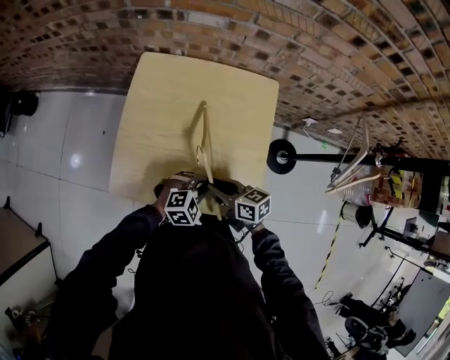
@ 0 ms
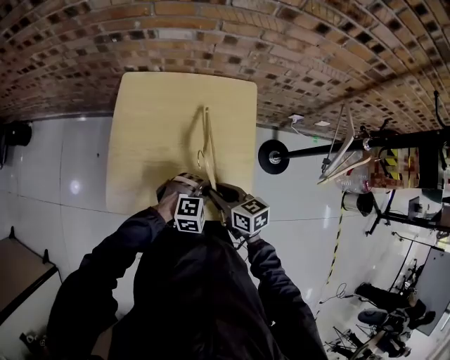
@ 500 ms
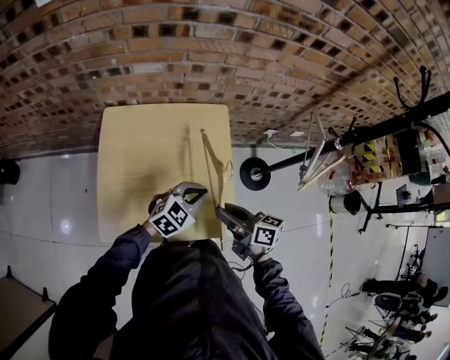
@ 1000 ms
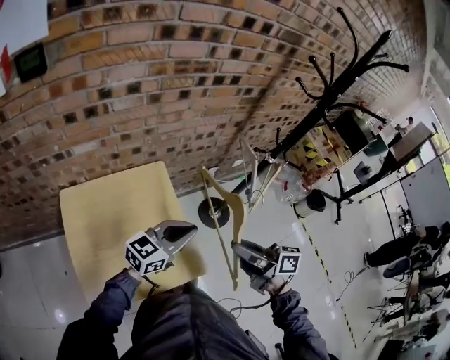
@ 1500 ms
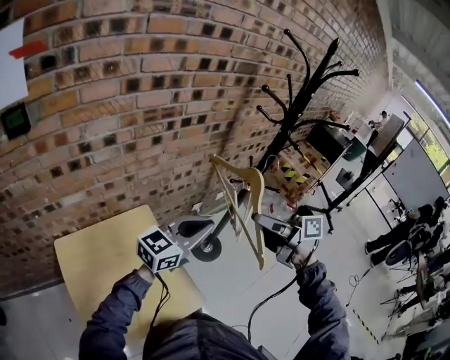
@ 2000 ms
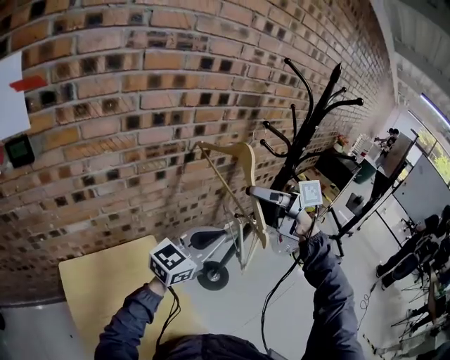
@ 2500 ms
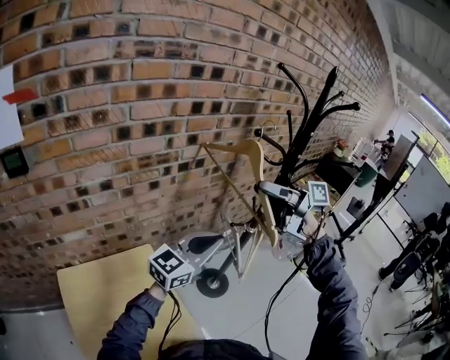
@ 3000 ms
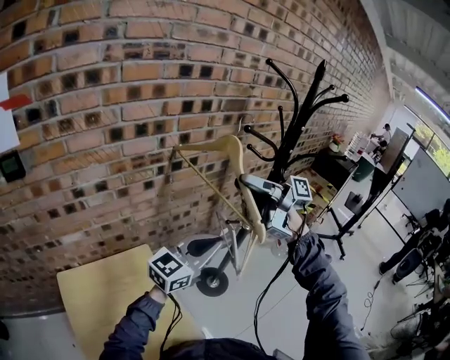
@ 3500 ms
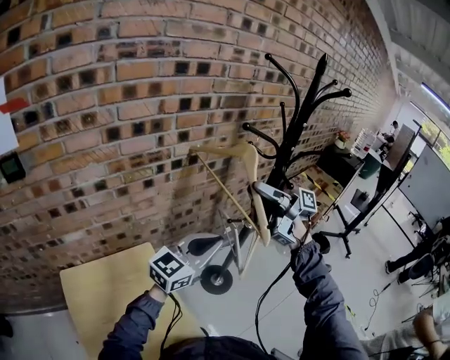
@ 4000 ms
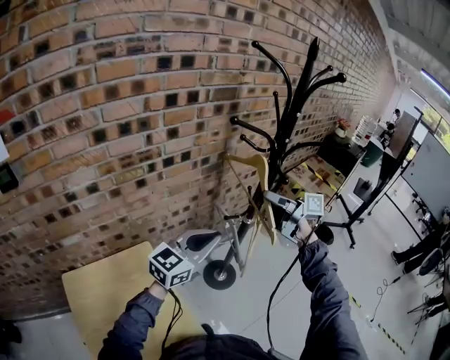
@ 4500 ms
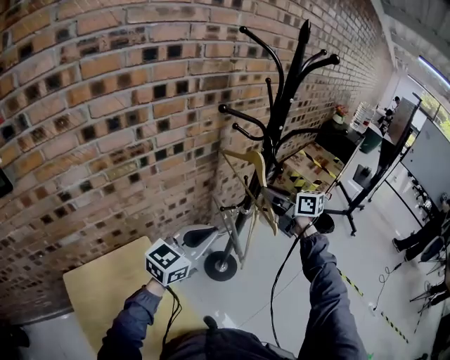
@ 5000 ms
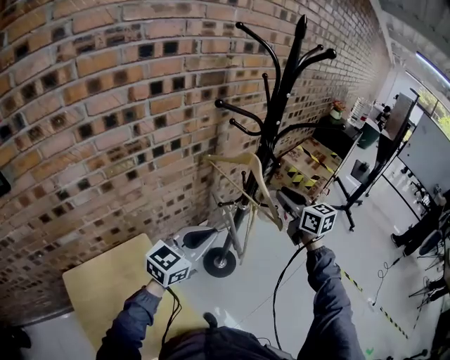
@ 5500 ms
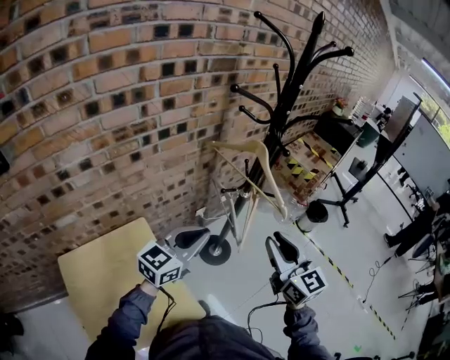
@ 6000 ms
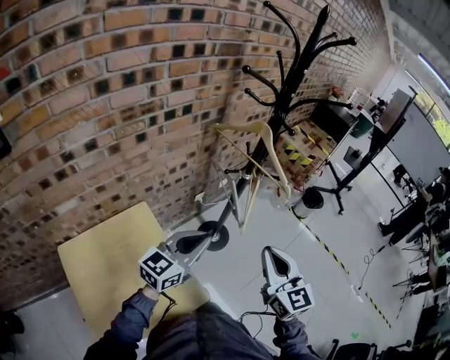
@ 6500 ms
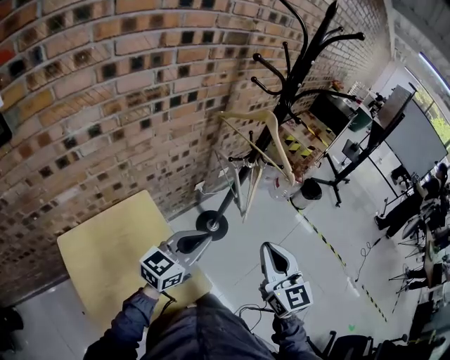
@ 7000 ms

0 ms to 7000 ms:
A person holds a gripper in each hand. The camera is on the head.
0 ms to 2000 ms: The two grippers go some 40 cm upward. The right gripper rotates roughly 50 degrees. The left gripper angles its fingers upward, by roughly 50 degrees.
2000 ms to 3500 ms: The right gripper moves approximately 20 cm, and rotates about 30 degrees; the left gripper moves approximately 10 cm.
3500 ms to 5000 ms: The left gripper ends up about 5 cm from where it was. The right gripper shifts roughly 25 cm to the right and downward, and swivels about 50 degrees.
5000 ms to 7000 ms: The right gripper heads backward, covering approximately 35 cm, rotates approximately 50 degrees, and closes its fingers; the left gripper goes some 20 cm backward and downward.

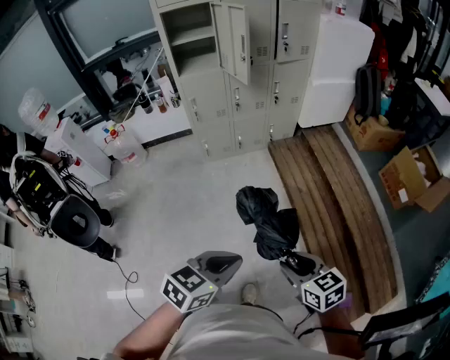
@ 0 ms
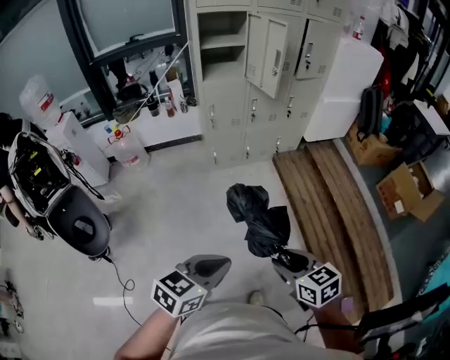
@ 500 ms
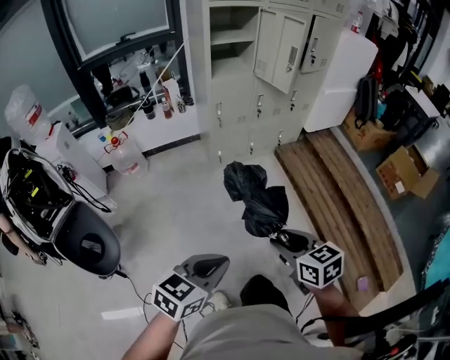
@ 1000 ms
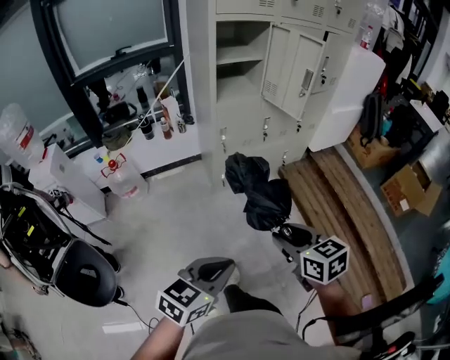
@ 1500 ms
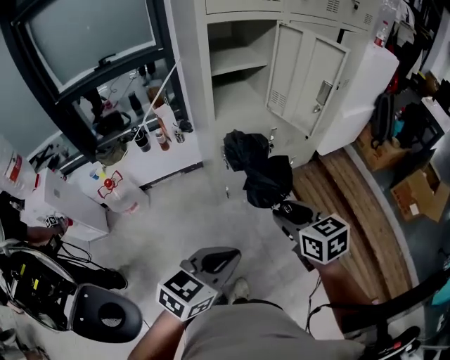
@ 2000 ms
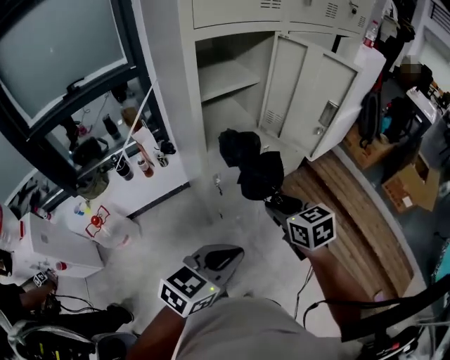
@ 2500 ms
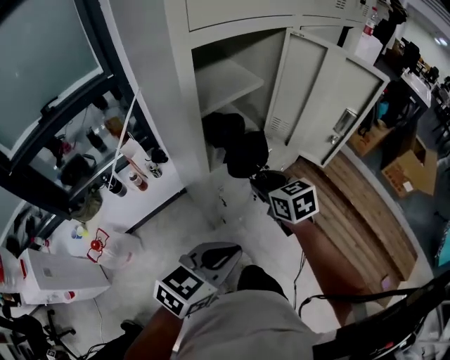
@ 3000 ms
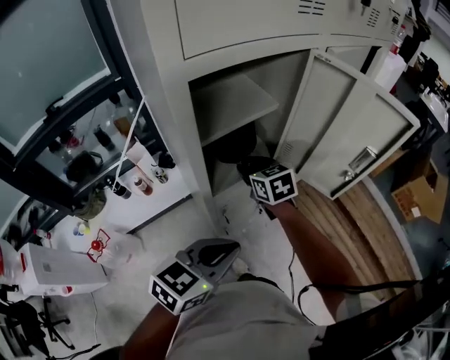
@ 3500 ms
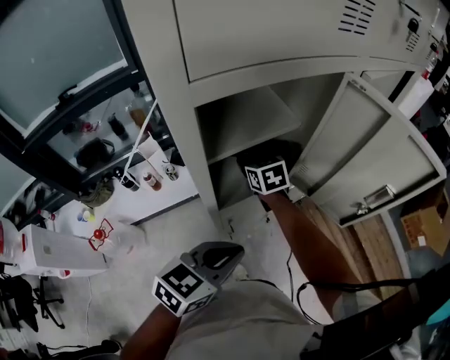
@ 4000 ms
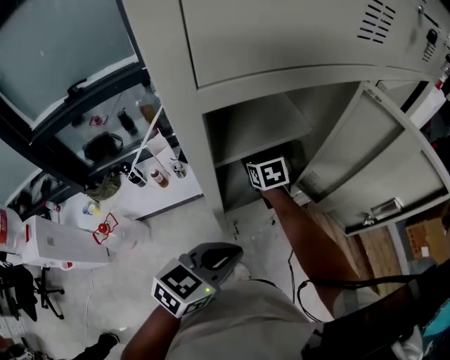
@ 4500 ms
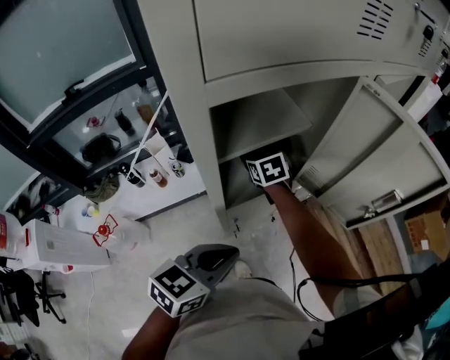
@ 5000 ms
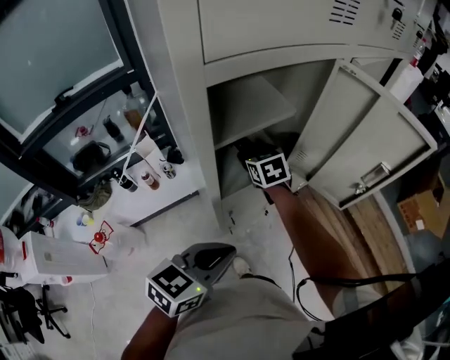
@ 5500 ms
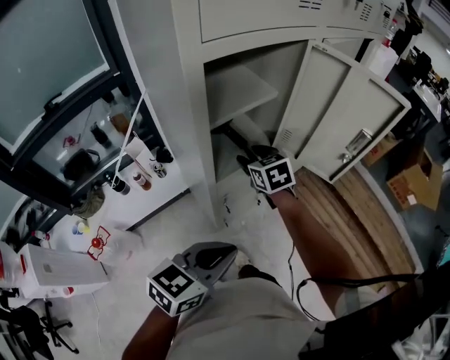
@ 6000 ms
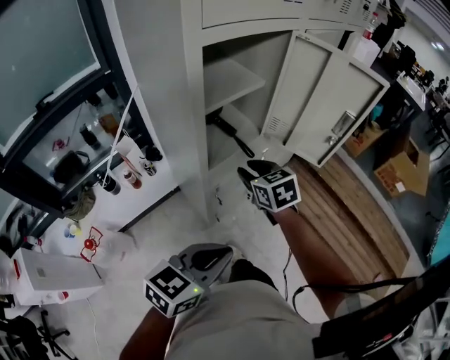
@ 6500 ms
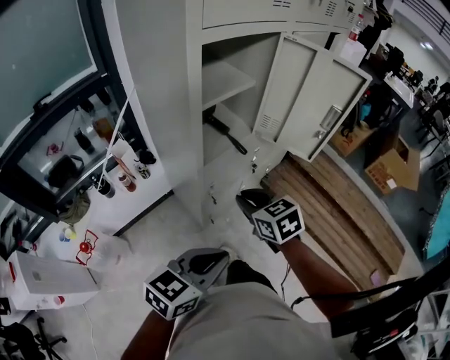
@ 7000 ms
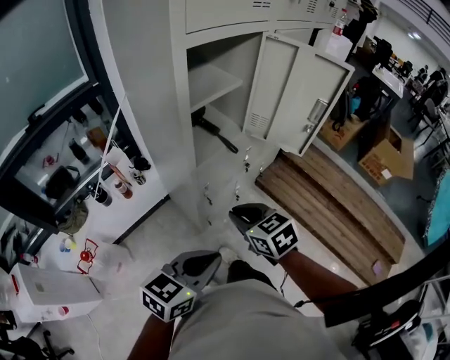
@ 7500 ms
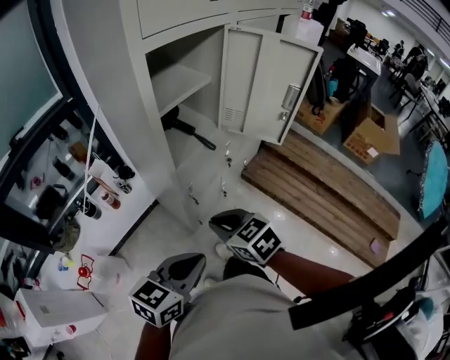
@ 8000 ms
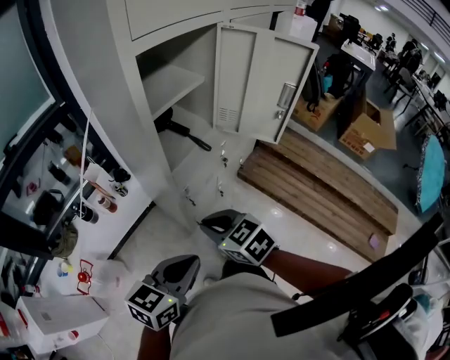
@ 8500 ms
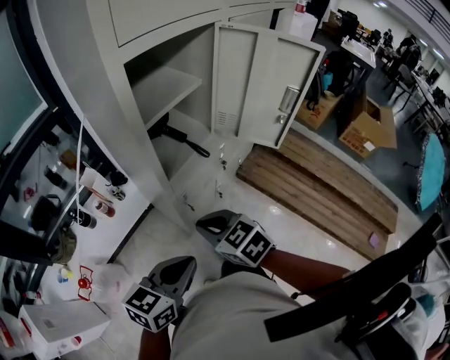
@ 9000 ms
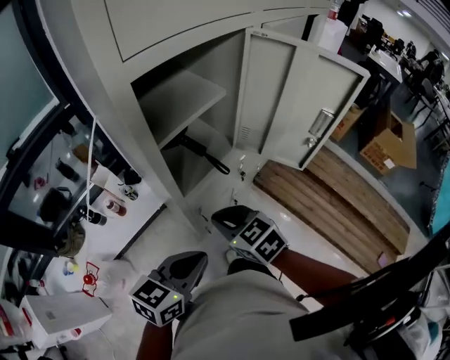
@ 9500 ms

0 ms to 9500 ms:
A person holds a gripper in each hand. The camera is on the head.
0 ms to 2000 ms: The pair of grippers is taken to the left and forward, roughly 50 cm.
2000 ms to 4000 ms: The right gripper moves forward and to the left, approximately 60 cm; the left gripper moves forward, approximately 35 cm.
4000 ms to 5500 ms: The grippers move only a little.
5500 ms to 7500 ms: The right gripper heads backward, covering approximately 35 cm, and closes up, while the left gripper is displaced backward by roughly 15 cm.
7500 ms to 9500 ms: The two grippers go about 10 cm forward.

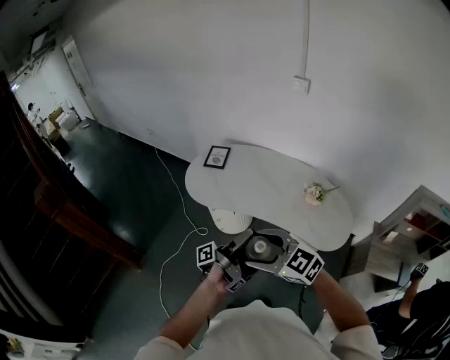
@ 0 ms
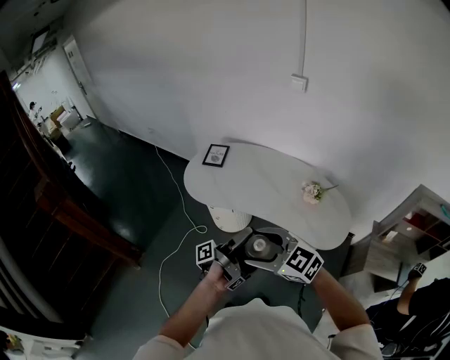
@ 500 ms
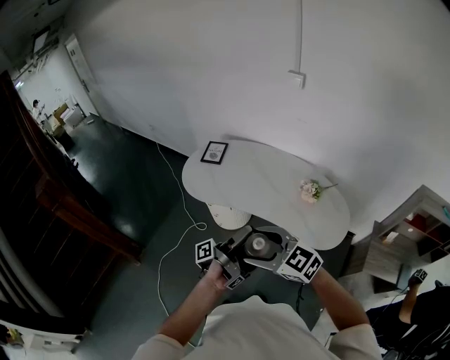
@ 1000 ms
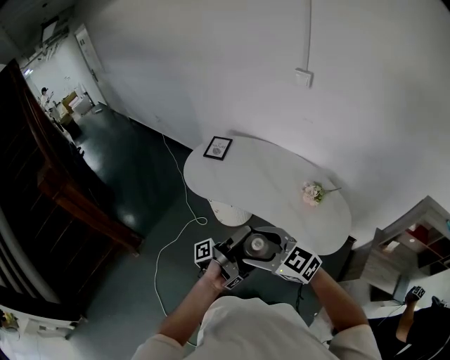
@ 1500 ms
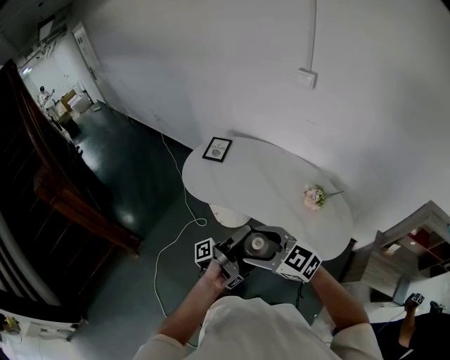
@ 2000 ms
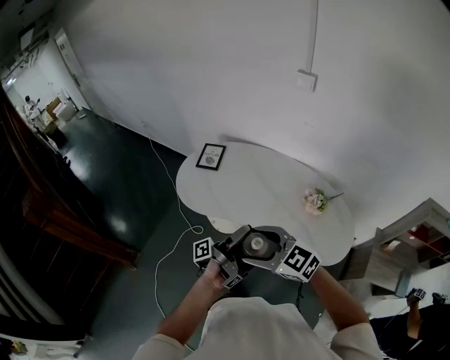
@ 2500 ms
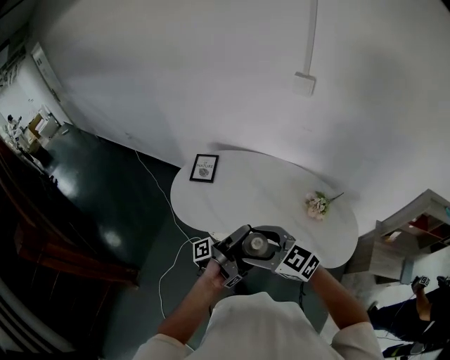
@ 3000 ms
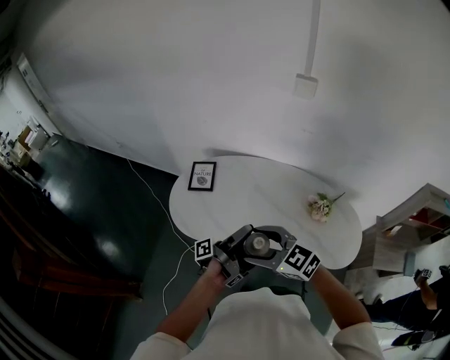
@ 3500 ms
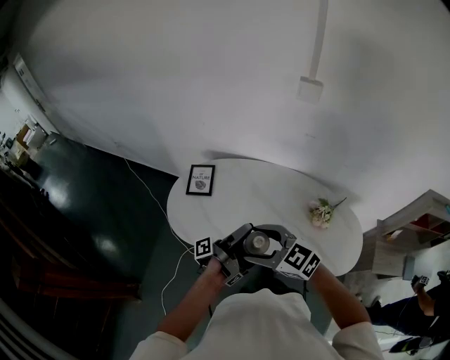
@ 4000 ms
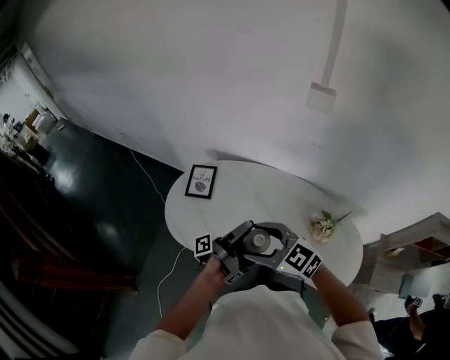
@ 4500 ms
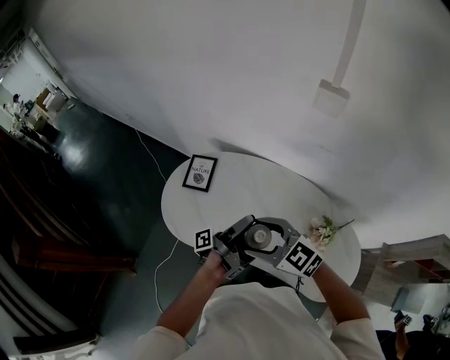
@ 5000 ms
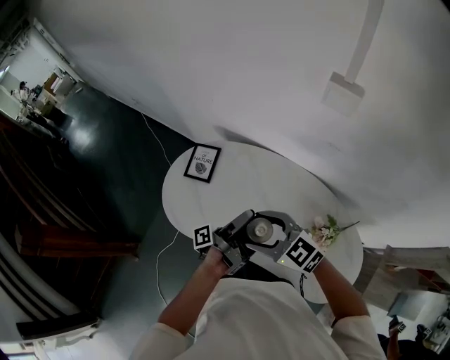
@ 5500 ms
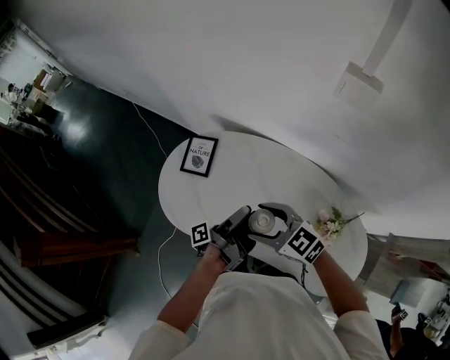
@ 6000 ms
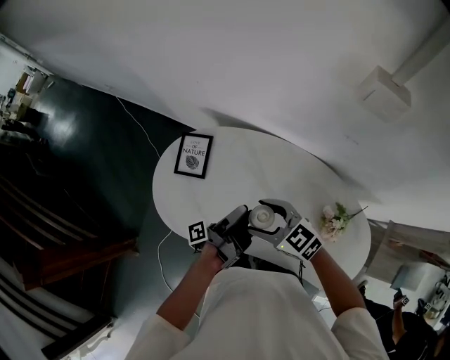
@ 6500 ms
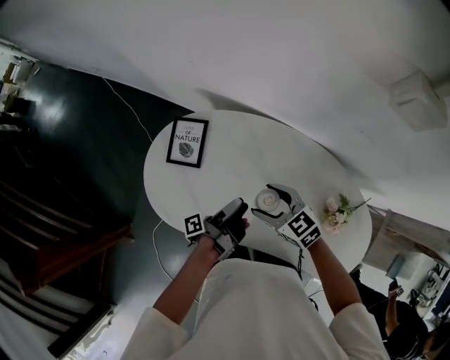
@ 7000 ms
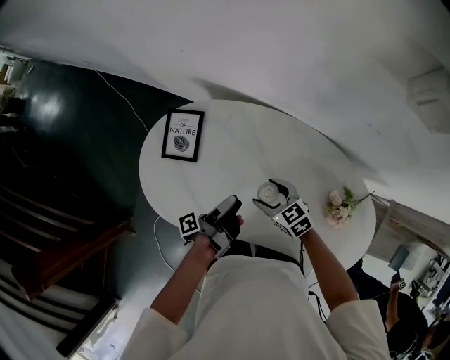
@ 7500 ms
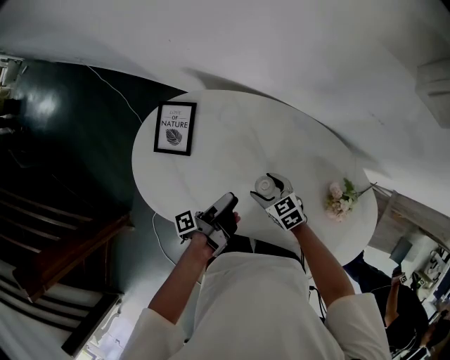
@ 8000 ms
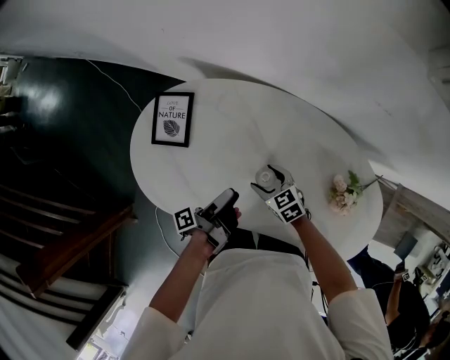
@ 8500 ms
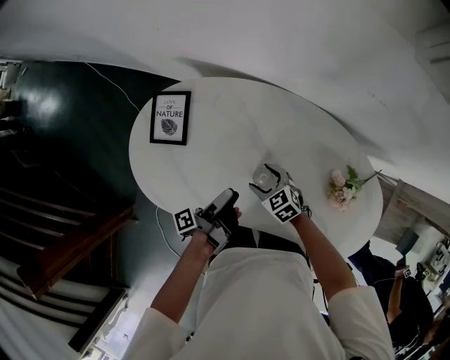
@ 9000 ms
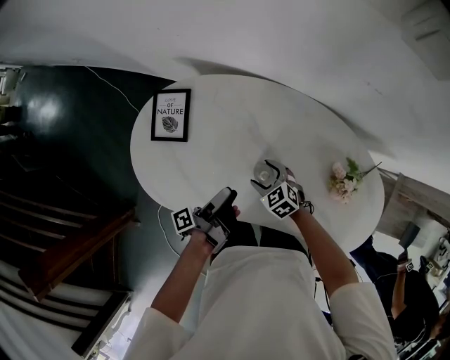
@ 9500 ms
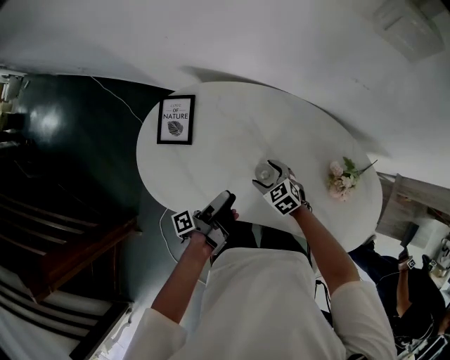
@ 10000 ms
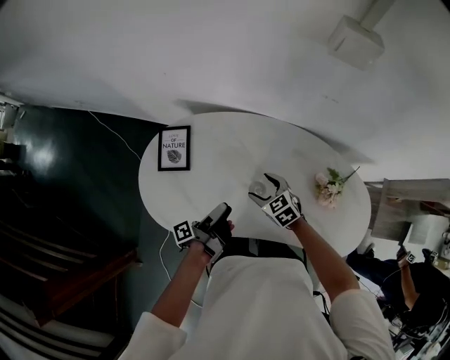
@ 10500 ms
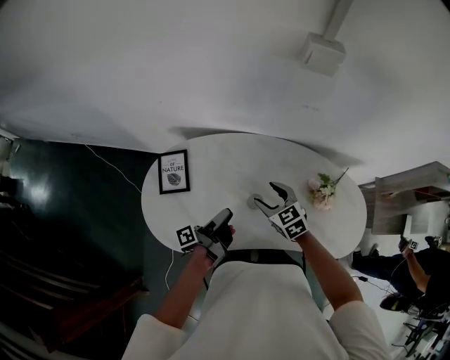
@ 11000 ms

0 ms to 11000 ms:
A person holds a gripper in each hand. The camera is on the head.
0 ms to 2000 ms: The right gripper shifts by approximately 10 cm.
2000 ms to 3500 ms: The right gripper moves approximately 25 cm.
3500 ms to 5500 ms: The right gripper moves approximately 25 cm.
5500 ms to 7500 ms: The right gripper goes approximately 30 cm downward, and changes its angle by approximately 40 degrees.
7500 ms to 9000 ms: The right gripper heads downward, covering about 10 cm.
9000 ms to 11000 ms: The right gripper is displaced upward by approximately 20 cm, and swivels roughly 30 degrees.
